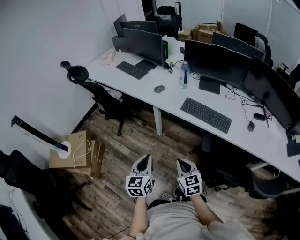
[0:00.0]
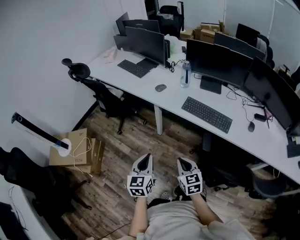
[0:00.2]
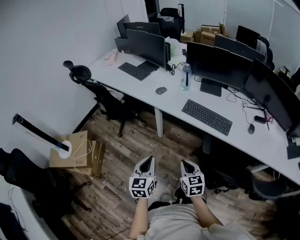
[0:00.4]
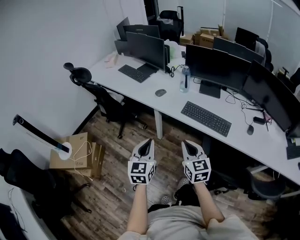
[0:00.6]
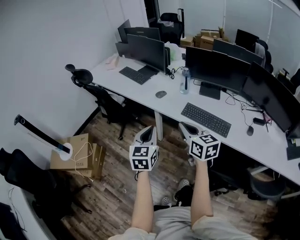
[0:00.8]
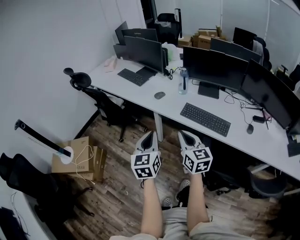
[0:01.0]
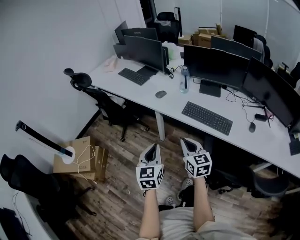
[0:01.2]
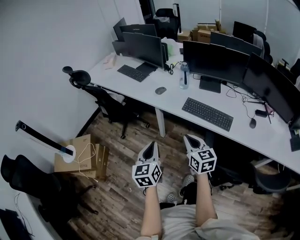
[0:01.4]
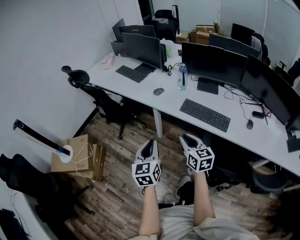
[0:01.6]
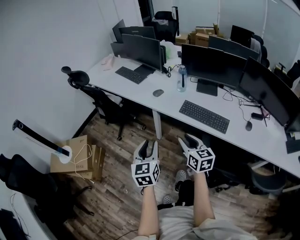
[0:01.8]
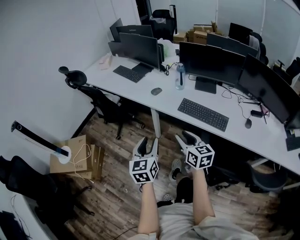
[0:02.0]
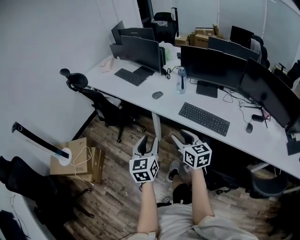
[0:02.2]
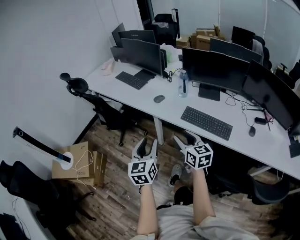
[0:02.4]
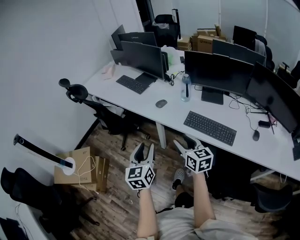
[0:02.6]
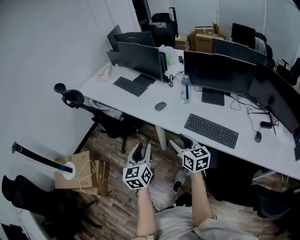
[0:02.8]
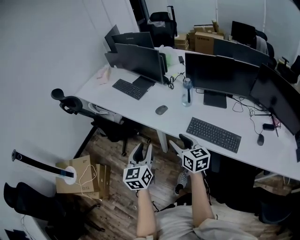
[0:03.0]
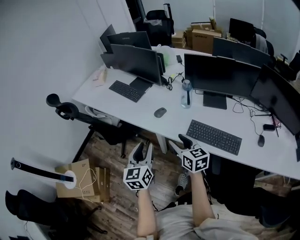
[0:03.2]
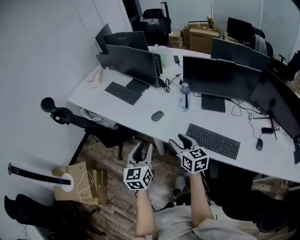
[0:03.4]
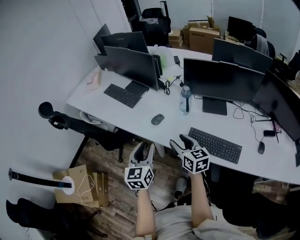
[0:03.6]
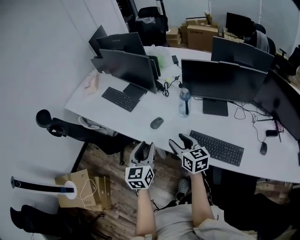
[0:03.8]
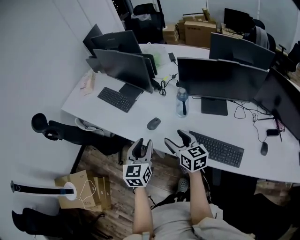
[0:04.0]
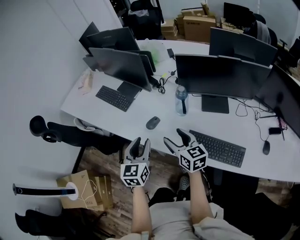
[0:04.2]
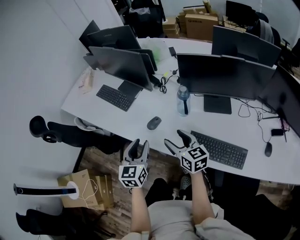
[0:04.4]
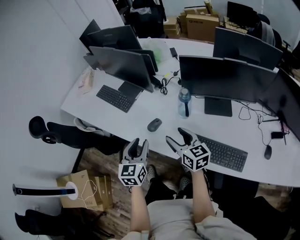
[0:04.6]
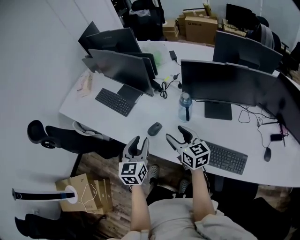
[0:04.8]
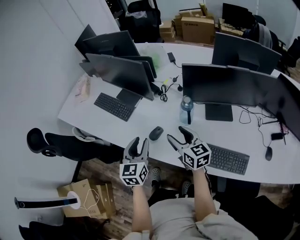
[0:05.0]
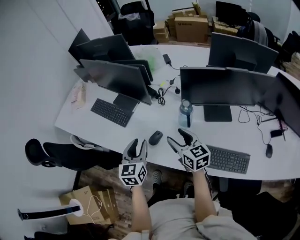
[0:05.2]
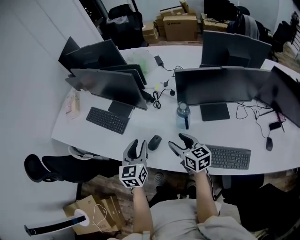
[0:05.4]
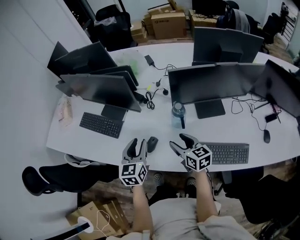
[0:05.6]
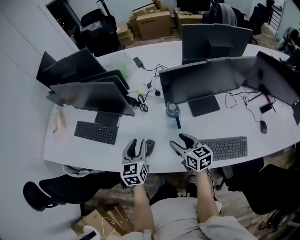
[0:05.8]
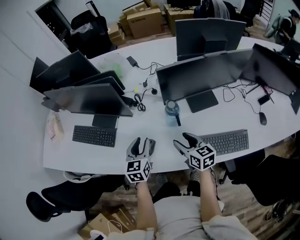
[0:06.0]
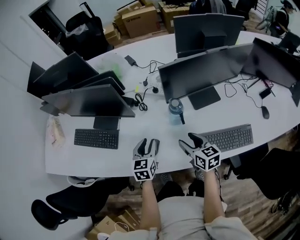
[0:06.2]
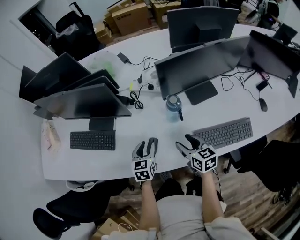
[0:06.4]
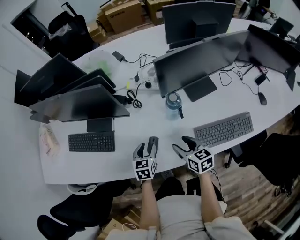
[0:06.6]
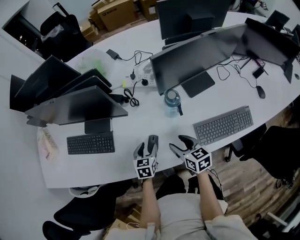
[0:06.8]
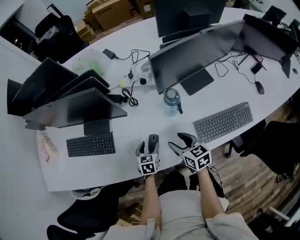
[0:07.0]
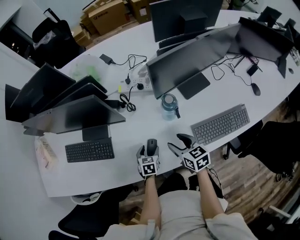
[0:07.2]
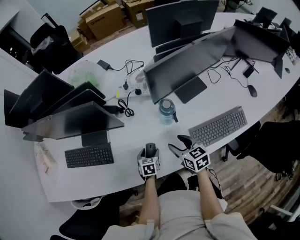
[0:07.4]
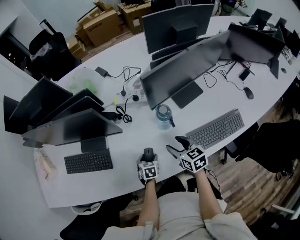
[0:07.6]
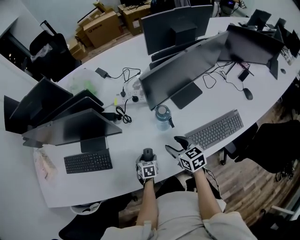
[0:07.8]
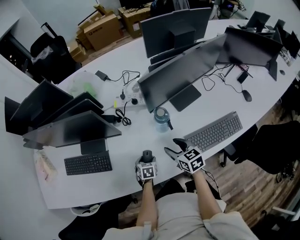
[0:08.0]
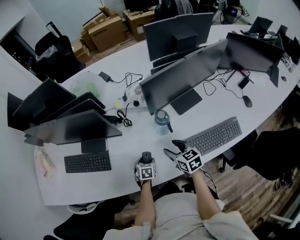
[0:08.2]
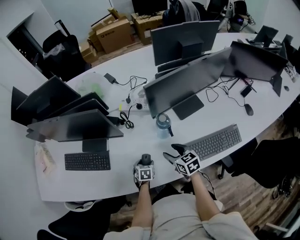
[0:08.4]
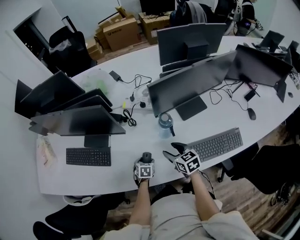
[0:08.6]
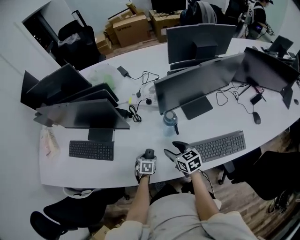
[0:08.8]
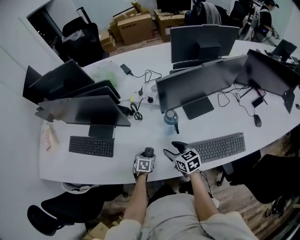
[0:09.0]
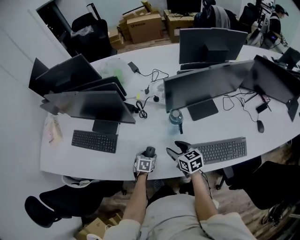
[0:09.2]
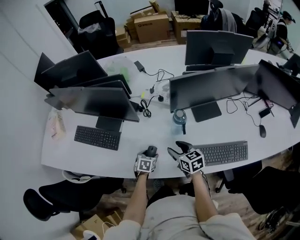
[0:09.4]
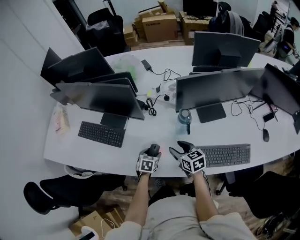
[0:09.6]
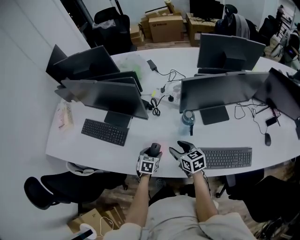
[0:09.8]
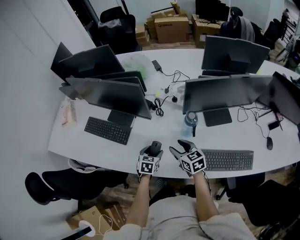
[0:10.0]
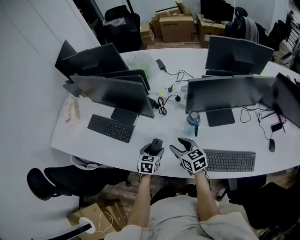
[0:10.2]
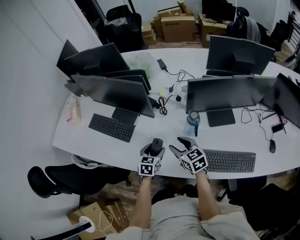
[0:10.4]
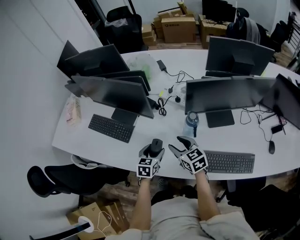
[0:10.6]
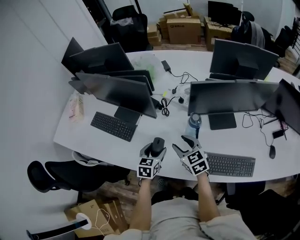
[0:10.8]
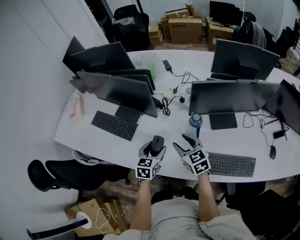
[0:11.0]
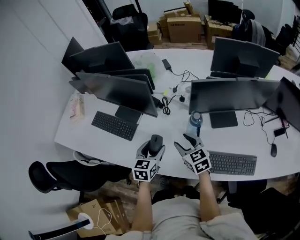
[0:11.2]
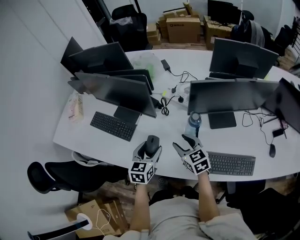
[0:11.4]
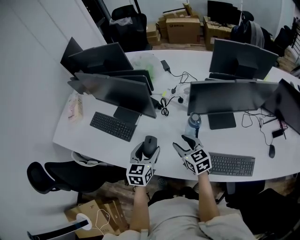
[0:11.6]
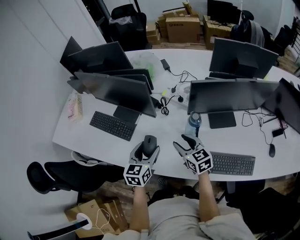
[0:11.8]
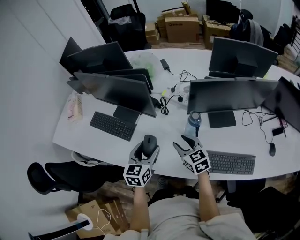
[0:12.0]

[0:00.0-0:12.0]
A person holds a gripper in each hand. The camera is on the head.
0.0 to 1.6 s: The left gripper moves upward, approximately 5 cm. The right gripper goes roughly 10 cm upward and forward.
1.6 to 3.0 s: Both grippers travel together forward, roughly 20 cm. The left gripper opens up. The right gripper opens.
3.0 to 4.4 s: The grippers both shift forward by some 20 cm.
4.4 to 6.0 s: The right gripper heads forward and downward, covering roughly 10 cm, and changes its angle by about 30 degrees. The left gripper shifts roughly 20 cm forward, and swivels roughly 20 degrees.
6.0 to 7.6 s: The left gripper is displaced downward by about 25 cm, tips its fingers downward by about 30 degrees, and opens.
7.6 to 9.0 s: The grippers make only small movements.
9.0 to 10.4 s: The left gripper is displaced upward by about 15 cm, and rotates roughly 20 degrees; the right gripper goes approximately 5 cm upward.
10.4 to 12.0 s: The left gripper travels upward by some 15 cm.

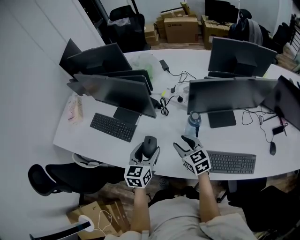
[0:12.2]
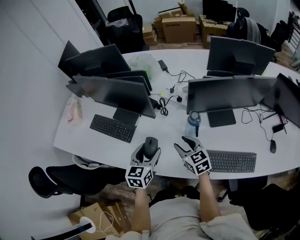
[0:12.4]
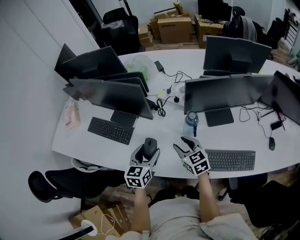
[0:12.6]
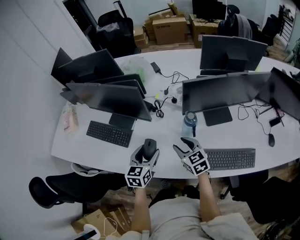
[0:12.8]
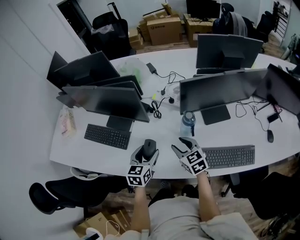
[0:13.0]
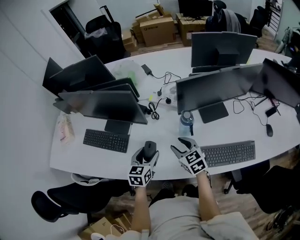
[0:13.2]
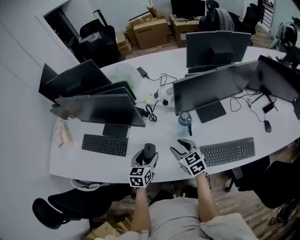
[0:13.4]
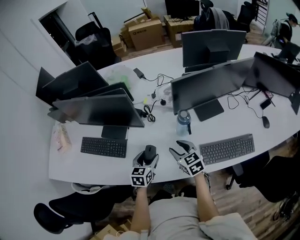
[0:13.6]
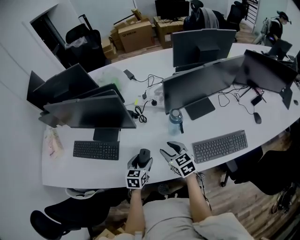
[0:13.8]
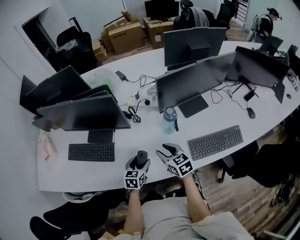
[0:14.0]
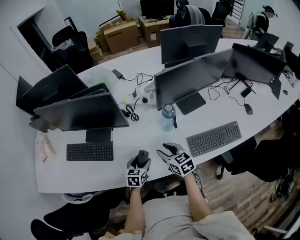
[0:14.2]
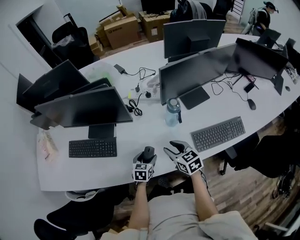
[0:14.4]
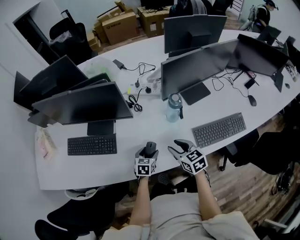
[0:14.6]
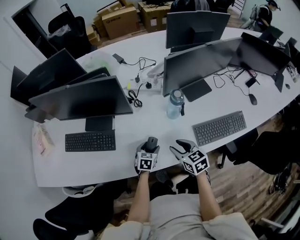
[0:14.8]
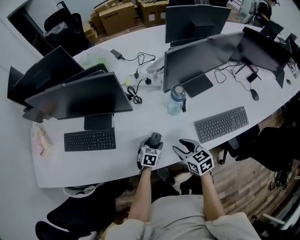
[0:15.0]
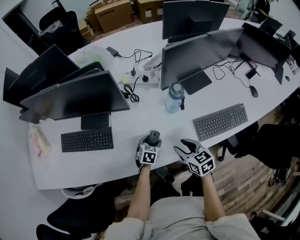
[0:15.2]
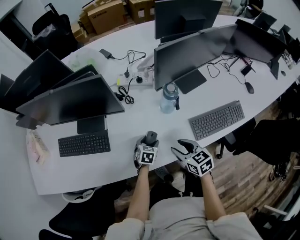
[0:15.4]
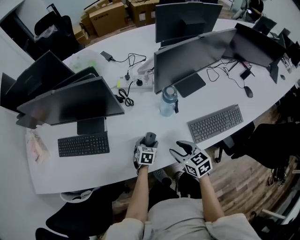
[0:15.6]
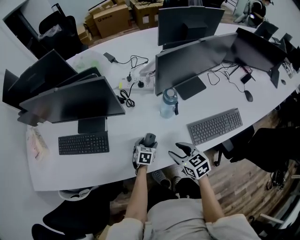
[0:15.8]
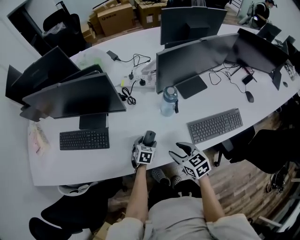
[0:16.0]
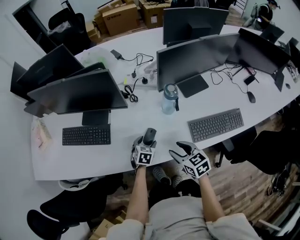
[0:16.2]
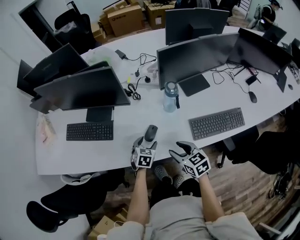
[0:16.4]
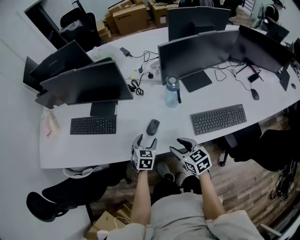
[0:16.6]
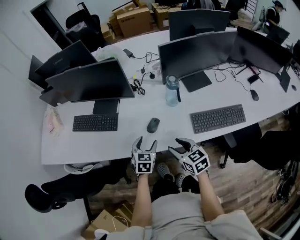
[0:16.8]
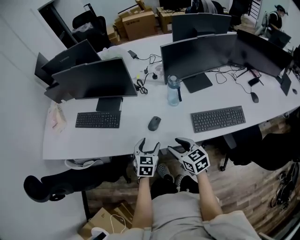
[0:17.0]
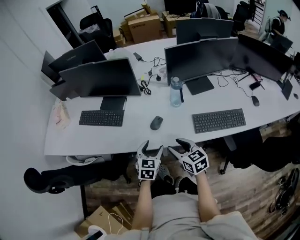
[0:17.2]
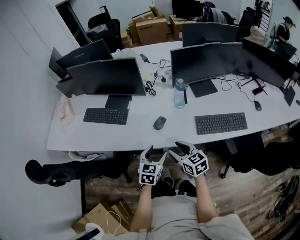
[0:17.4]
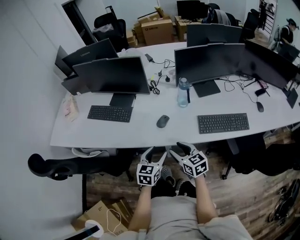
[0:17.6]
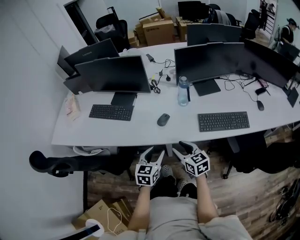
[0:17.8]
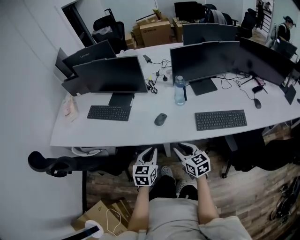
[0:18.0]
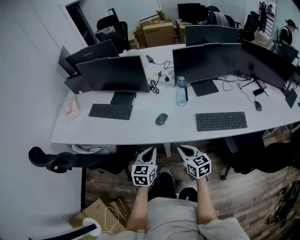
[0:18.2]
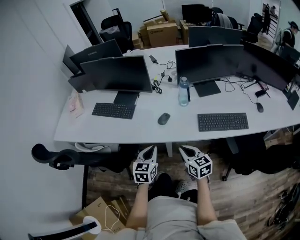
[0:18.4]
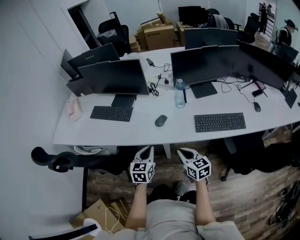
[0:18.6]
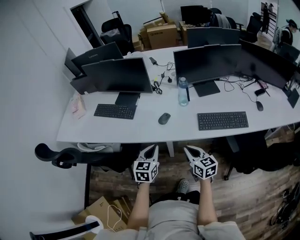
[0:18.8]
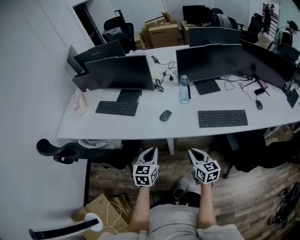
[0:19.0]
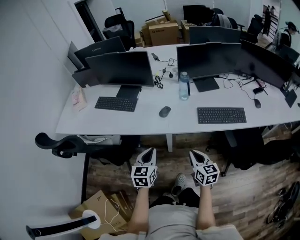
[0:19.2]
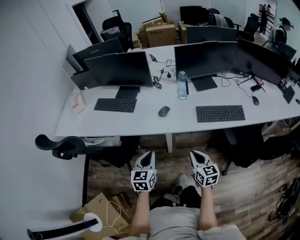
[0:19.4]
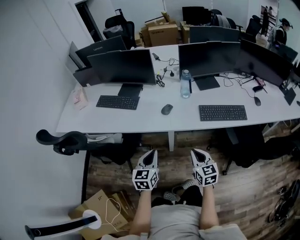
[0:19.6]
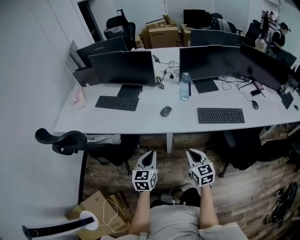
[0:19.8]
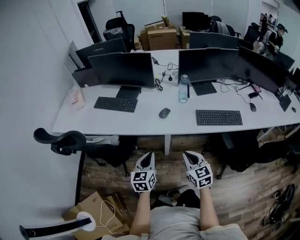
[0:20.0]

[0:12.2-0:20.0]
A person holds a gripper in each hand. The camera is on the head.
12.2 to 13.8 s: The left gripper is displaced downward by approximately 15 cm, and turns by about 20 degrees.
13.8 to 15.4 s: The right gripper goes approximately 10 cm backward and downward. Meanwhile the left gripper travels downward by roughly 15 cm, and swivels some 20 degrees.
15.4 to 16.8 s: The right gripper is displaced backward and upward by some 10 cm. Meanwhile the left gripper is displaced upward and backward by roughly 20 cm, and rotates roughly 20 degrees.
16.8 to 18.4 s: The left gripper shifts about 20 cm backward and upward, and closes its fingers. Meanwhile the right gripper goes some 10 cm backward, and closes up.
18.4 to 20.0 s: The right gripper goes approximately 10 cm backward, while the left gripper moves backward and to the left, some 15 cm.

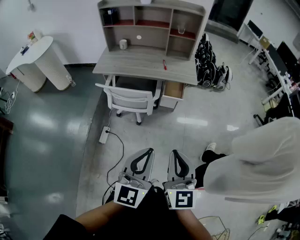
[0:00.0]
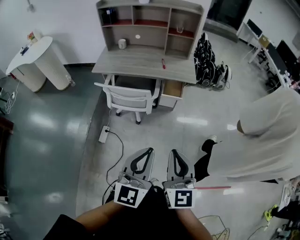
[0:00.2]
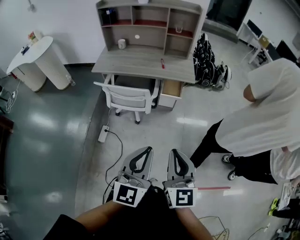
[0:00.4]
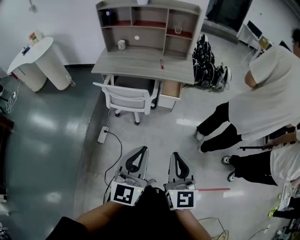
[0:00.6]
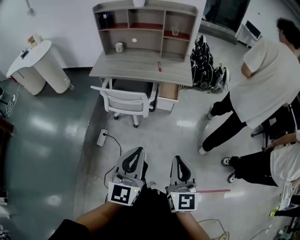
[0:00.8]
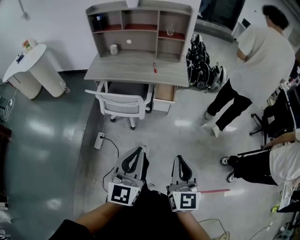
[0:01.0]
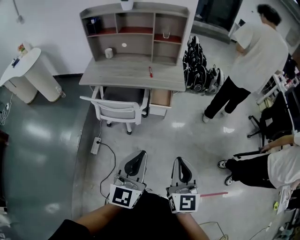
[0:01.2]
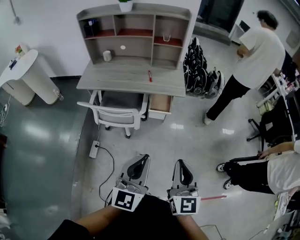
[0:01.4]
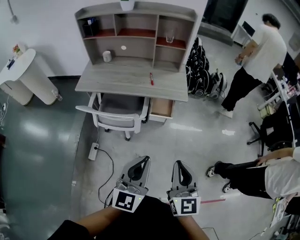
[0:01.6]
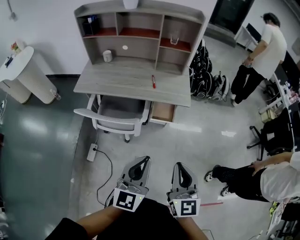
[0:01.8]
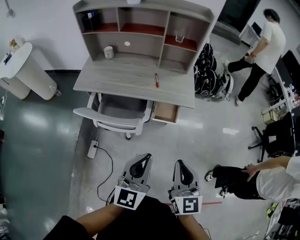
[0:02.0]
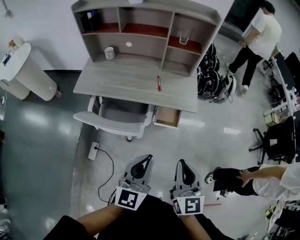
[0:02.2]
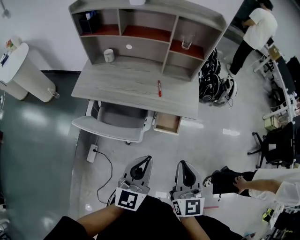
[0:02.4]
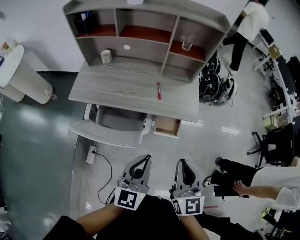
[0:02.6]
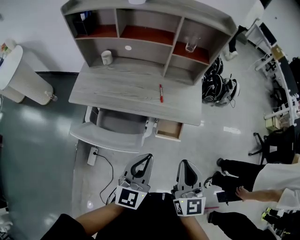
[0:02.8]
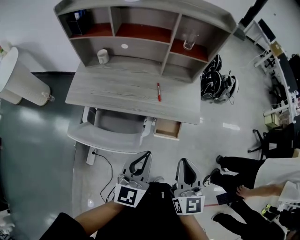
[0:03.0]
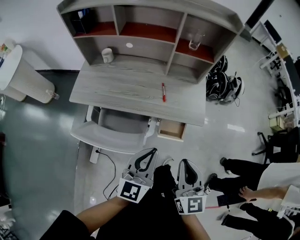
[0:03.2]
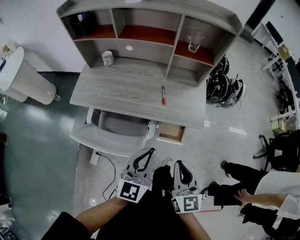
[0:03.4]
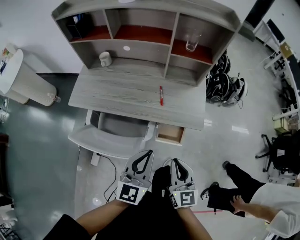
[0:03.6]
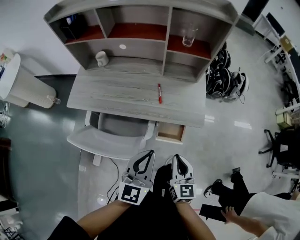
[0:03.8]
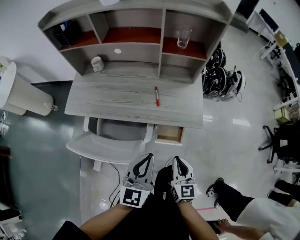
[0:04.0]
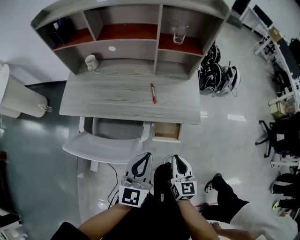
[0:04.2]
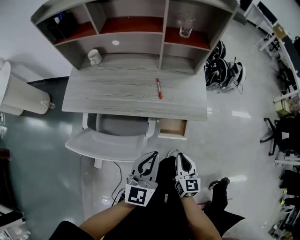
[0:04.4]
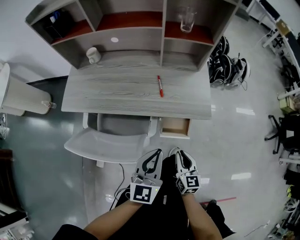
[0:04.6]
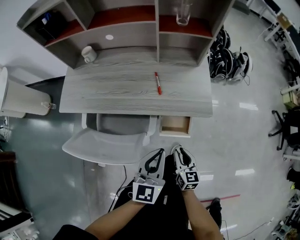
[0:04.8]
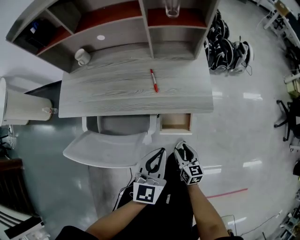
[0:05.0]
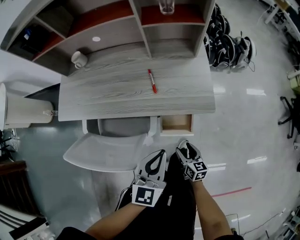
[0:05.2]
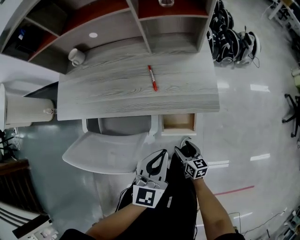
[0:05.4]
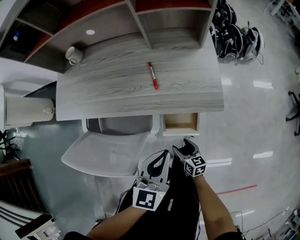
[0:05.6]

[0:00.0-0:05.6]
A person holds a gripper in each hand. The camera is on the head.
0.0 to 1.4 s: The right gripper moves to the right and forward, about 15 cm; the left gripper travels forward and to the right by approximately 15 cm.
1.4 to 2.8 s: The two grippers go approximately 35 cm forward.
2.8 to 4.2 s: The left gripper moves forward and downward, approximately 10 cm, while the right gripper moves downward, roughly 20 cm.
4.2 to 5.6 s: The left gripper travels downward and to the right by about 15 cm; the right gripper heads downward, covering roughly 30 cm, swivels approximately 30 degrees, and opens its fingers.
